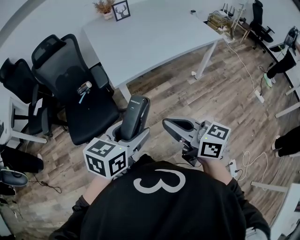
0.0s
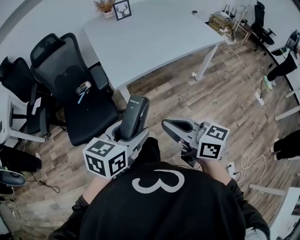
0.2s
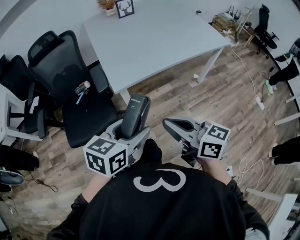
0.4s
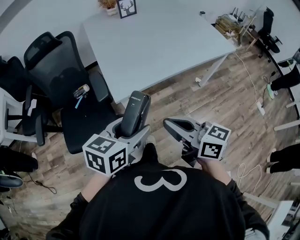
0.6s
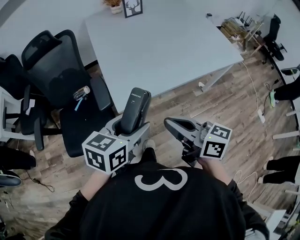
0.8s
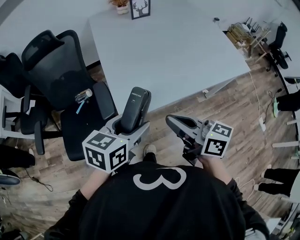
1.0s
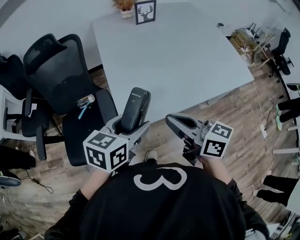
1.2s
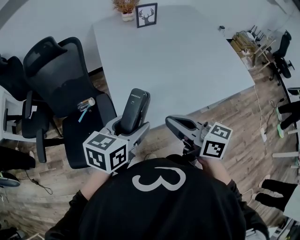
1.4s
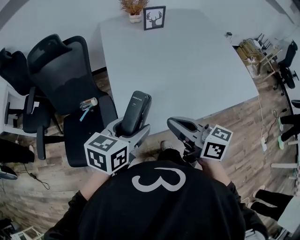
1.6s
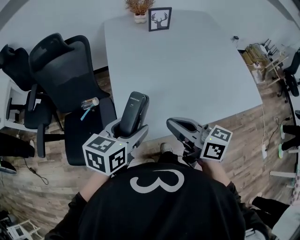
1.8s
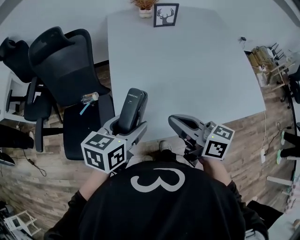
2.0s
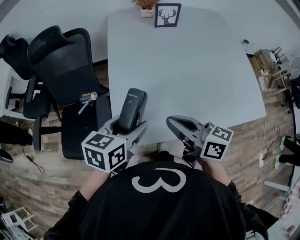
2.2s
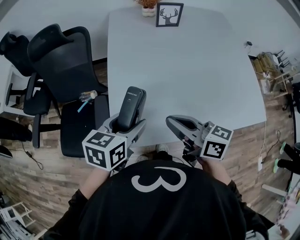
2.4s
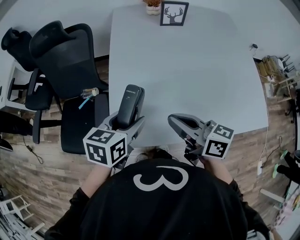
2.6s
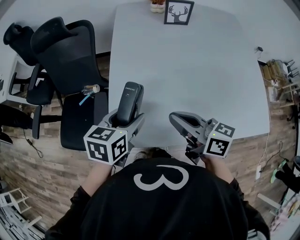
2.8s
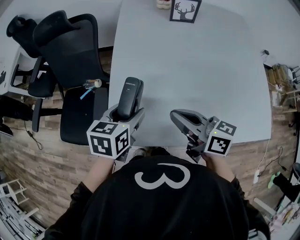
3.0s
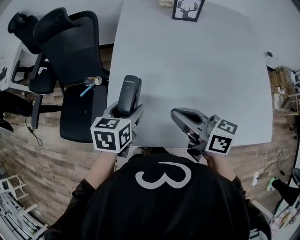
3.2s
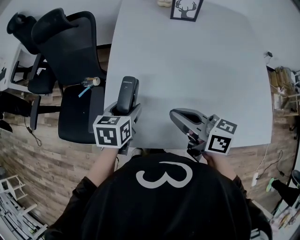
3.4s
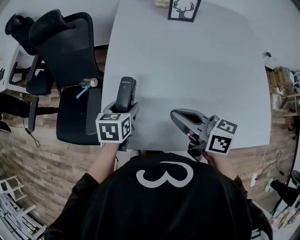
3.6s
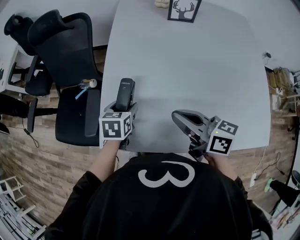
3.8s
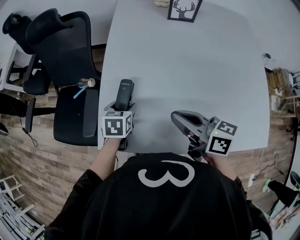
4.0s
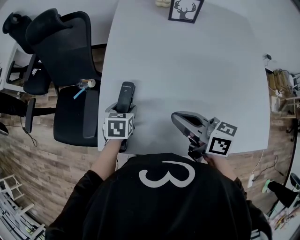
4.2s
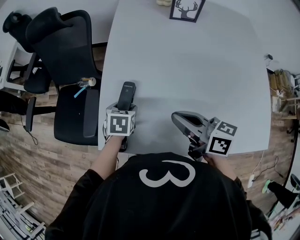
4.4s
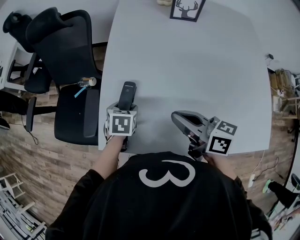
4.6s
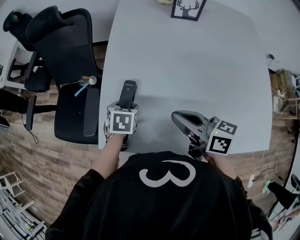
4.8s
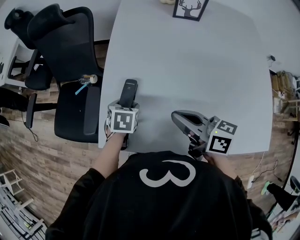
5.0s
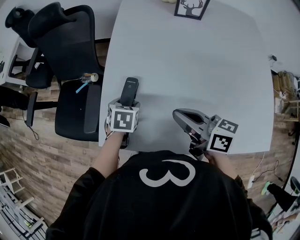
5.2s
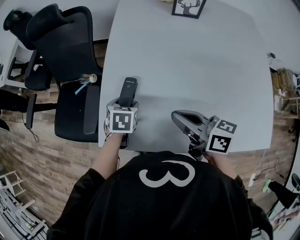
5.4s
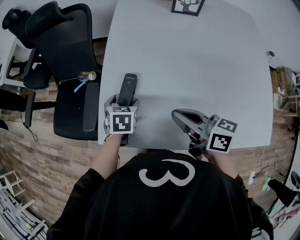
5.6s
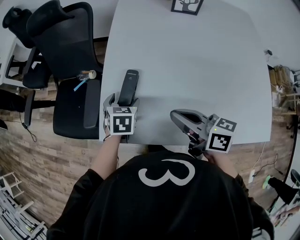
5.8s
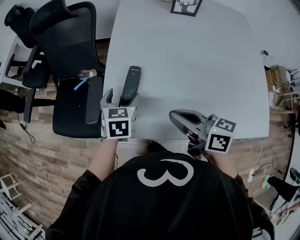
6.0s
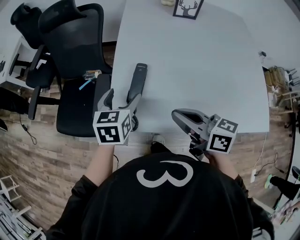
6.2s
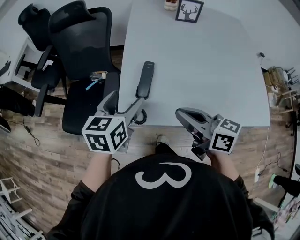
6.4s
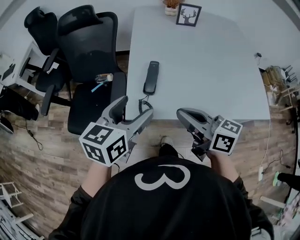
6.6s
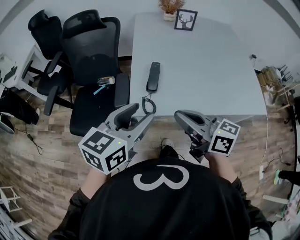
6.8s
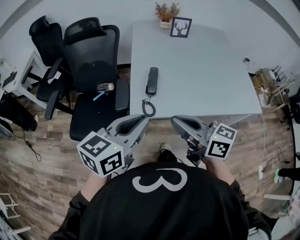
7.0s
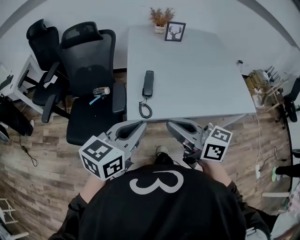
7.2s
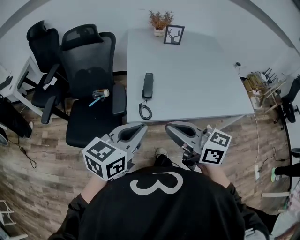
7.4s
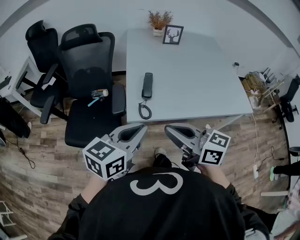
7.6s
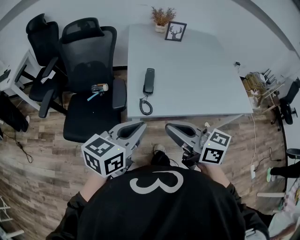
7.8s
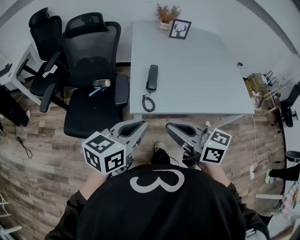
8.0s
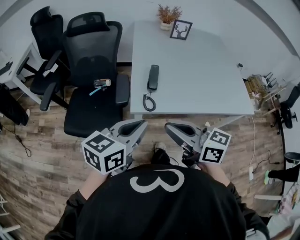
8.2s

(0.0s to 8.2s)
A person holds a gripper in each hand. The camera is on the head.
0.0s - 1.6s: The two grippers go roughly 35 cm forward.
1.6s - 3.2s: The left gripper ends up about 15 cm from where it was, and swivels some 30 degrees; the right gripper moves approximately 15 cm, and turns by roughly 20 degrees.
3.2s - 5.0s: The left gripper travels downward by about 15 cm, and swivels some 20 degrees.
5.0s - 6.6s: The left gripper shifts roughly 30 cm upward, backward and to the left, and tips its fingers upward by approximately 40 degrees. The right gripper is displaced to the left, backward and upward by roughly 20 cm.
6.6s - 8.2s: The right gripper is displaced backward and to the left by approximately 15 cm; the left gripper goes approximately 15 cm backward, and closes up.

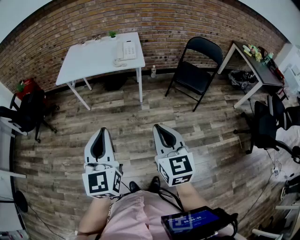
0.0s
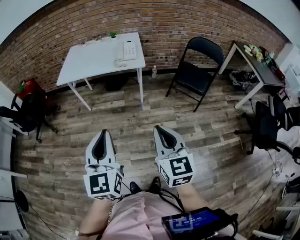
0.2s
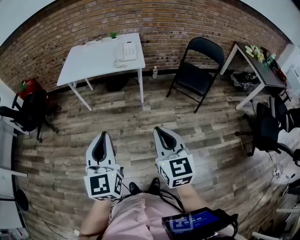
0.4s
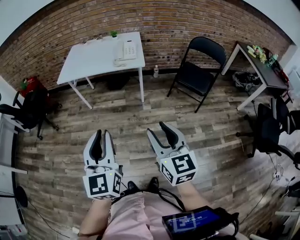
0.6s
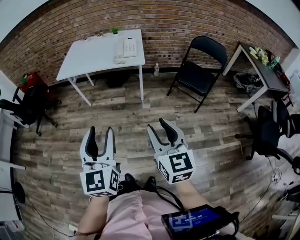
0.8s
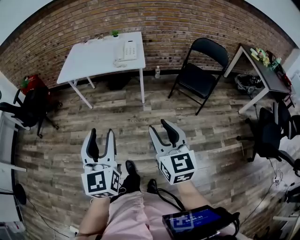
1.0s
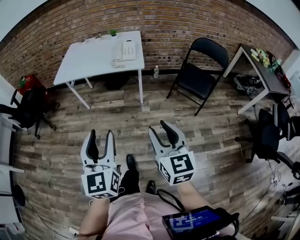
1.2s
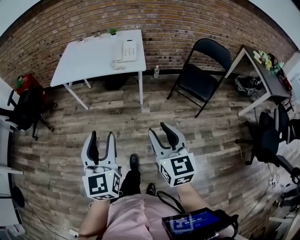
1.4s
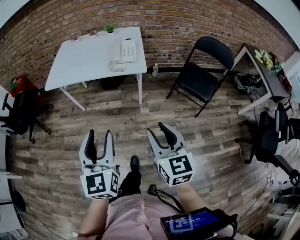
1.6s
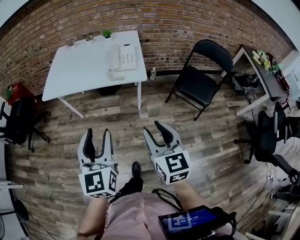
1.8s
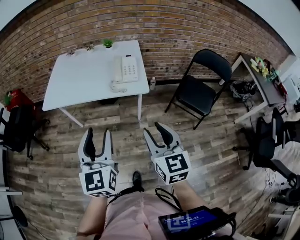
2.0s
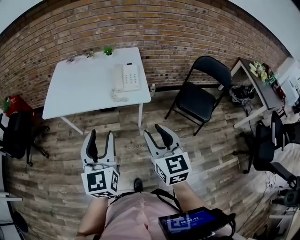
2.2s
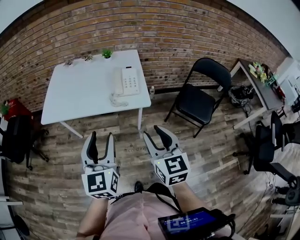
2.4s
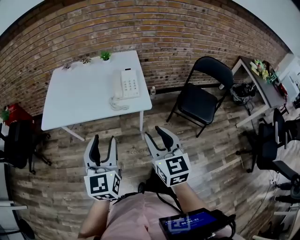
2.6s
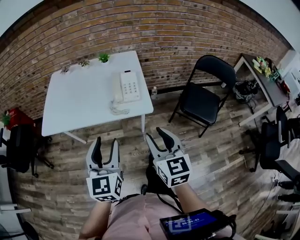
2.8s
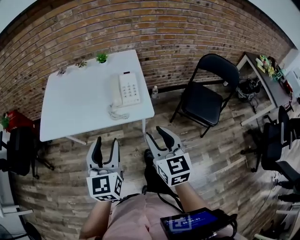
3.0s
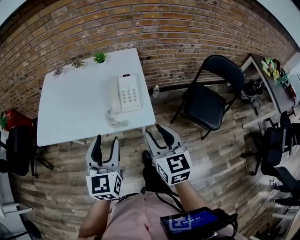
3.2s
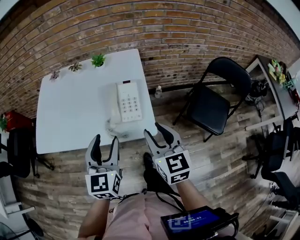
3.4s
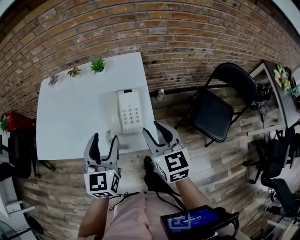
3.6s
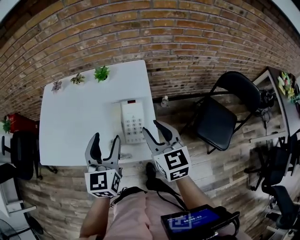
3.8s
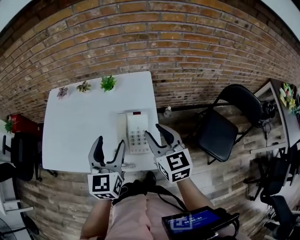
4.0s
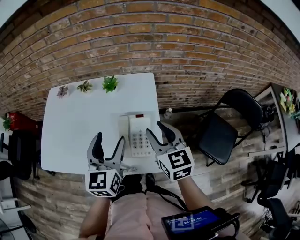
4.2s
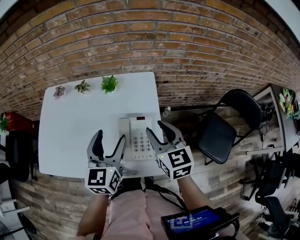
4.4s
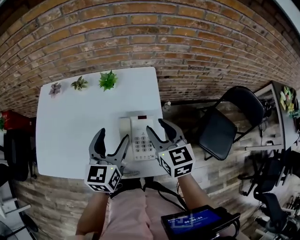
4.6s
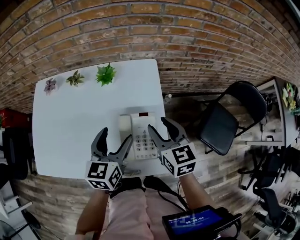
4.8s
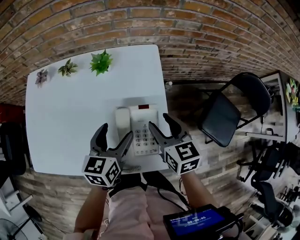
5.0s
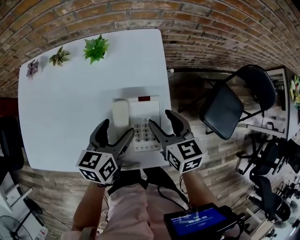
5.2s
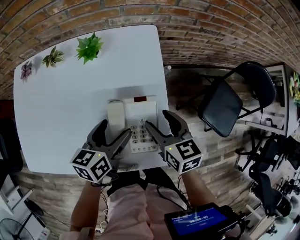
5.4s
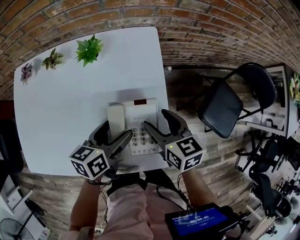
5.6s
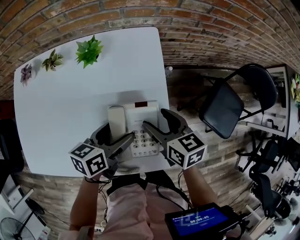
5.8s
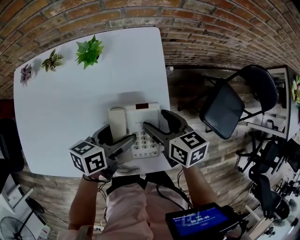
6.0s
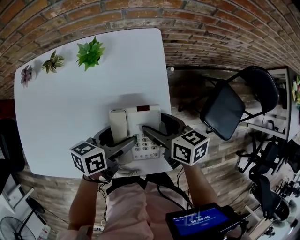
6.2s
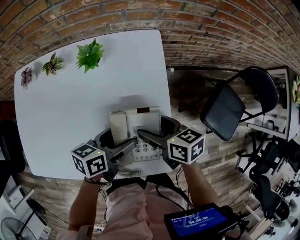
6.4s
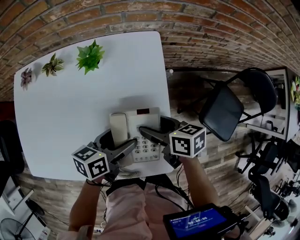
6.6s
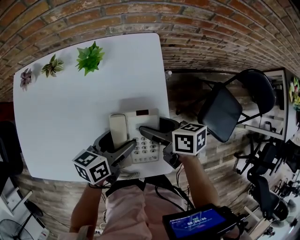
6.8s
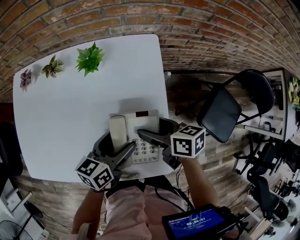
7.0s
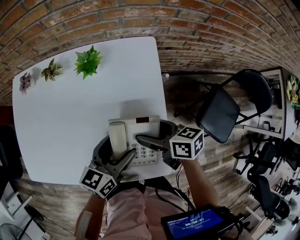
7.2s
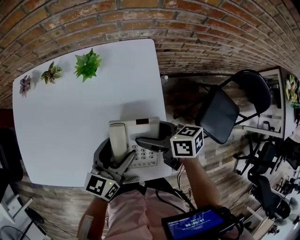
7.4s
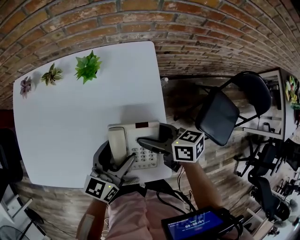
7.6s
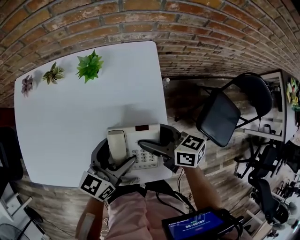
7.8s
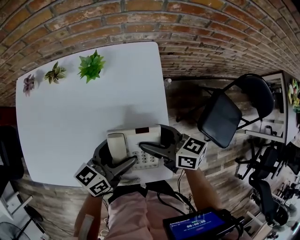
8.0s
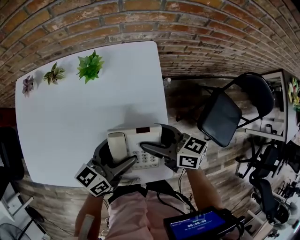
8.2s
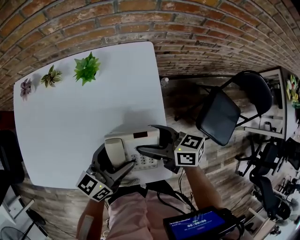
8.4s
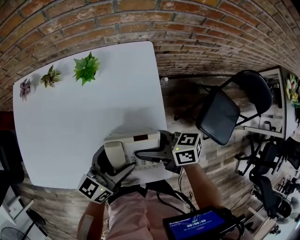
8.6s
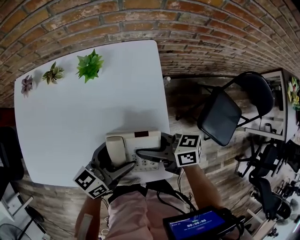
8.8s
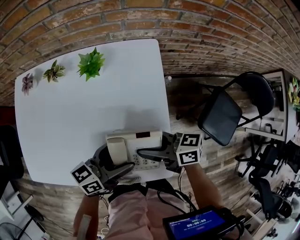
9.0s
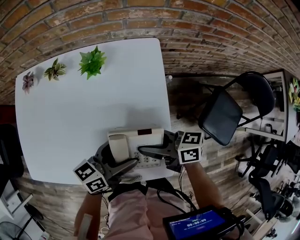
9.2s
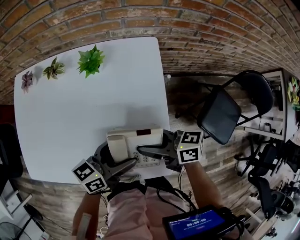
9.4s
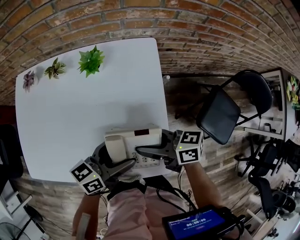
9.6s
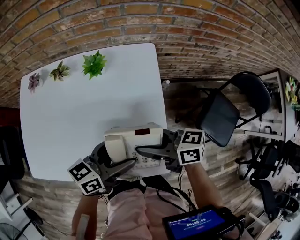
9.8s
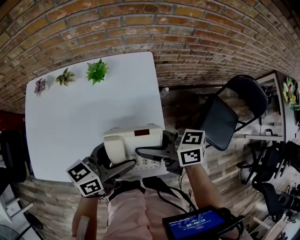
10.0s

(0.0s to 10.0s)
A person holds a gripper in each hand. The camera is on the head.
0.0s - 1.4s: The right gripper moves forward and to the right, approximately 10 cm, and opens its fingers, while the left gripper shifts roughly 10 cm forward, and opens.
1.4s - 2.8s: Both grippers travel together forward, some 30 cm.
2.8s - 4.2s: Both grippers travel together forward, roughly 35 cm.
4.2s - 5.8s: Both grippers move downward, about 20 cm. The left gripper swivels about 50 degrees; the right gripper rotates approximately 30 degrees, and opens up.
5.8s - 7.2s: The right gripper turns by some 20 degrees.
7.2s - 8.6s: There are only small adjustments of the grippers.
8.6s - 10.0s: The left gripper moves upward, about 5 cm, while the right gripper heads upward, covering about 10 cm.

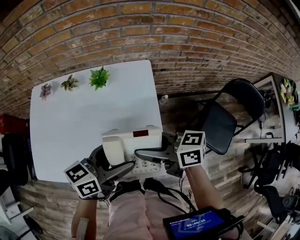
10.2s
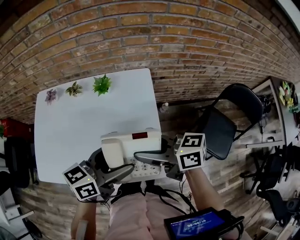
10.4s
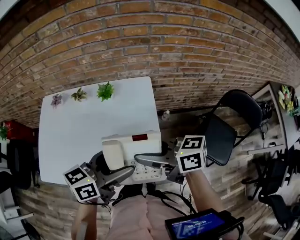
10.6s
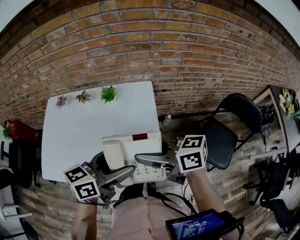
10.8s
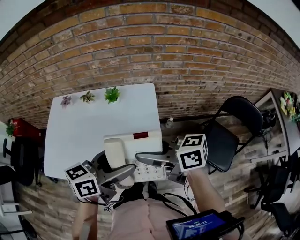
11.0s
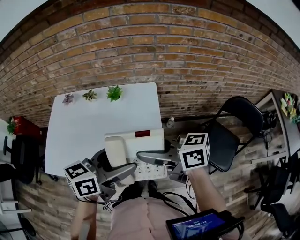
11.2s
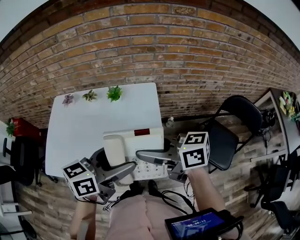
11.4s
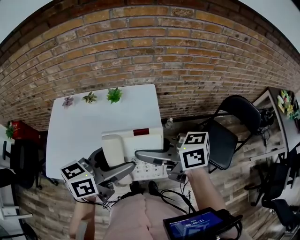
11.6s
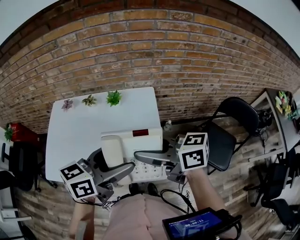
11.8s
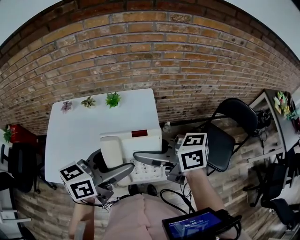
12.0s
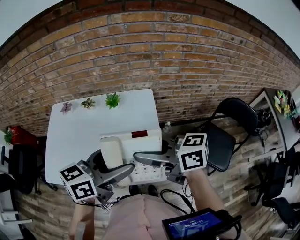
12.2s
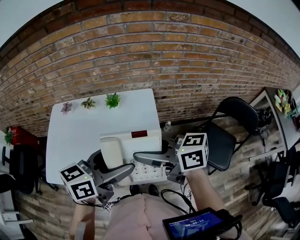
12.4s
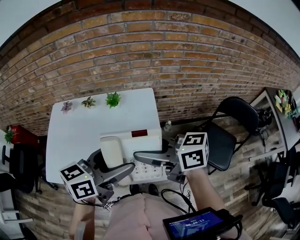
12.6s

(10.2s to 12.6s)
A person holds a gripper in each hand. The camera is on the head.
10.2s - 11.4s: The grippers both shift upward by roughly 10 cm.
11.4s - 12.6s: The grippers stay close to where they were, moving slightly.

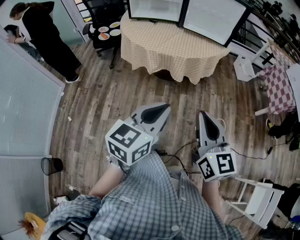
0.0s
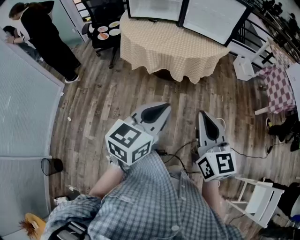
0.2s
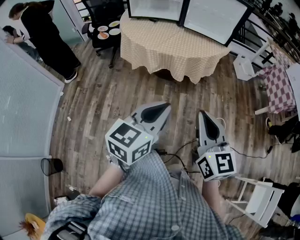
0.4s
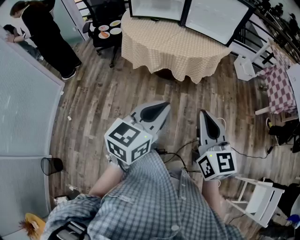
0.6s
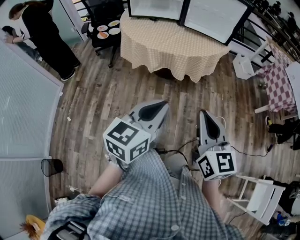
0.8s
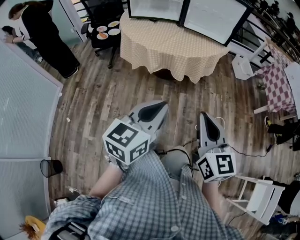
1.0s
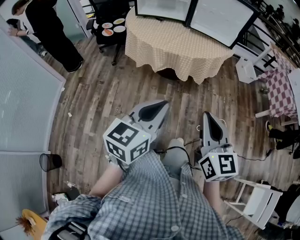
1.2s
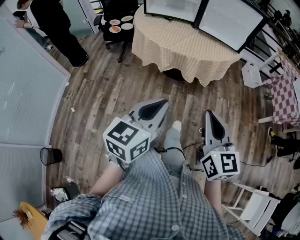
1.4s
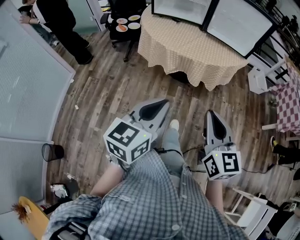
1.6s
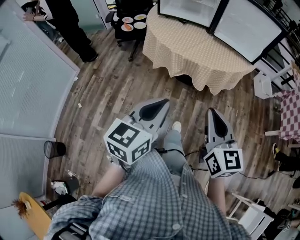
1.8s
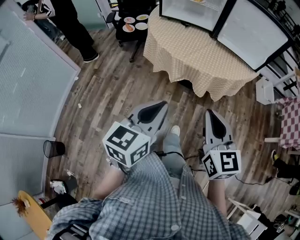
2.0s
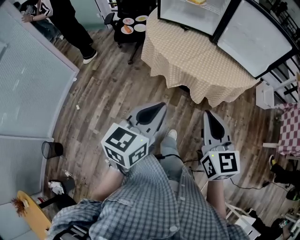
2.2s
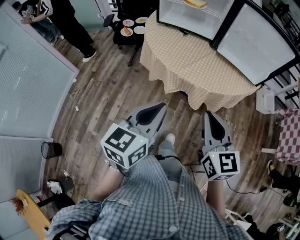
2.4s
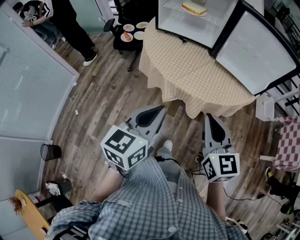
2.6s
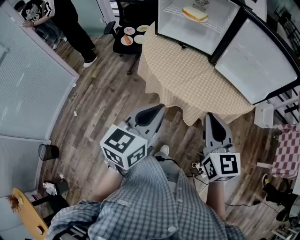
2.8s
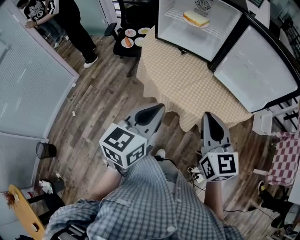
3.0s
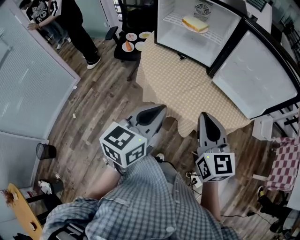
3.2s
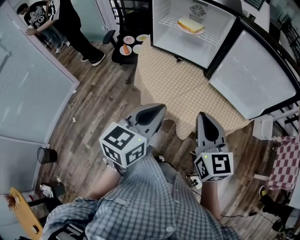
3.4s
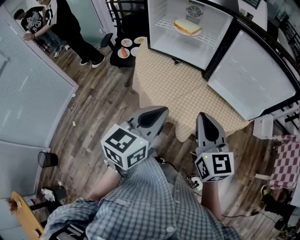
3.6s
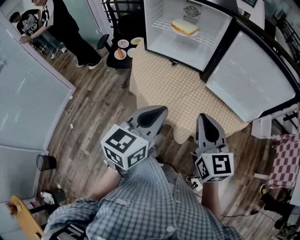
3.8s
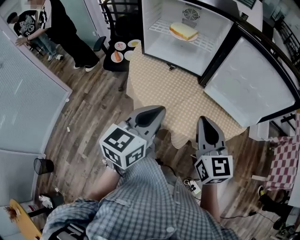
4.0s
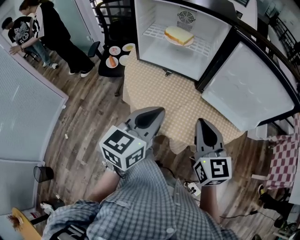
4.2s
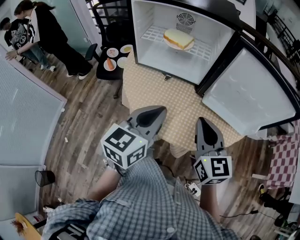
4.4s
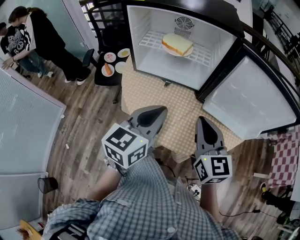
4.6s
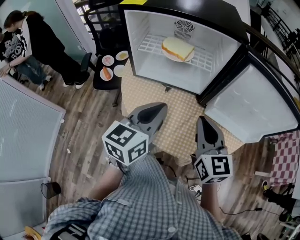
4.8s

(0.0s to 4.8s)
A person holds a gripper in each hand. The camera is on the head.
0.0s - 1.6s: The right gripper shifts by approximately 5 cm. Meanwhile the left gripper moves to the left, approximately 10 cm.
1.6s - 3.2s: The grippers both shift forward by roughly 35 cm.
3.2s - 4.8s: The two grippers go some 20 cm forward.
